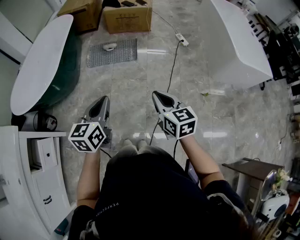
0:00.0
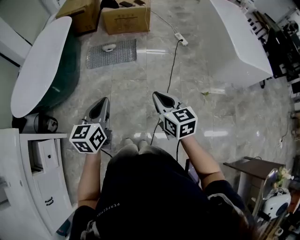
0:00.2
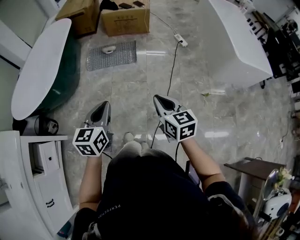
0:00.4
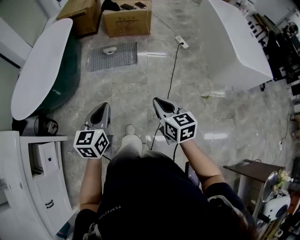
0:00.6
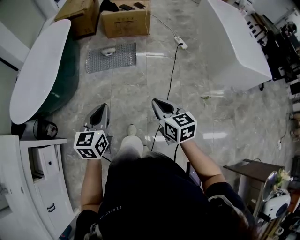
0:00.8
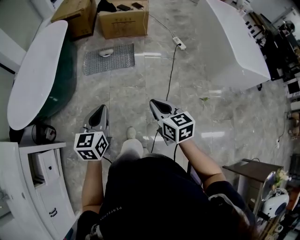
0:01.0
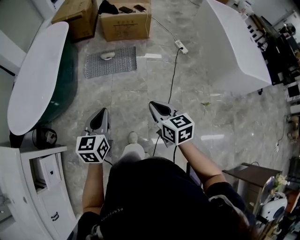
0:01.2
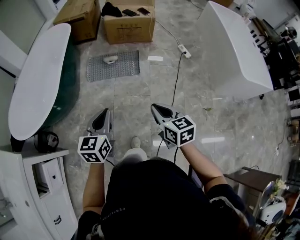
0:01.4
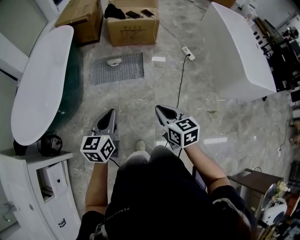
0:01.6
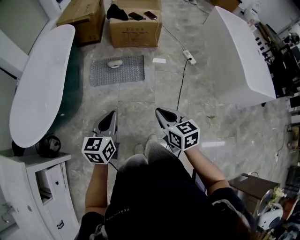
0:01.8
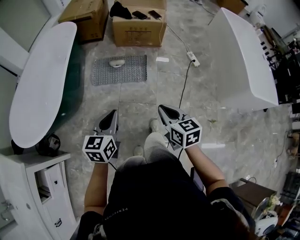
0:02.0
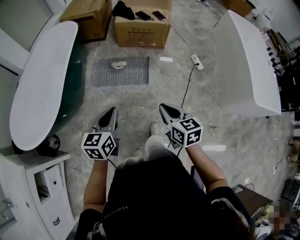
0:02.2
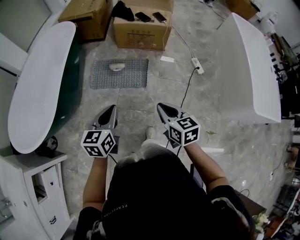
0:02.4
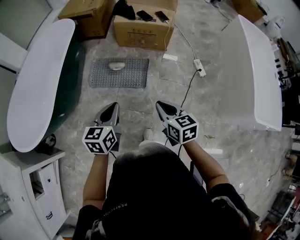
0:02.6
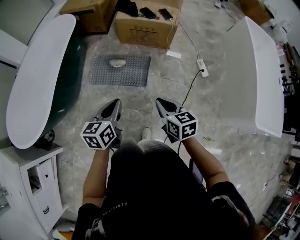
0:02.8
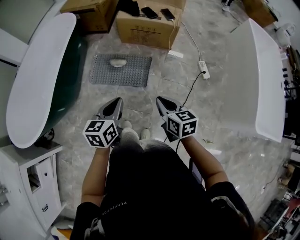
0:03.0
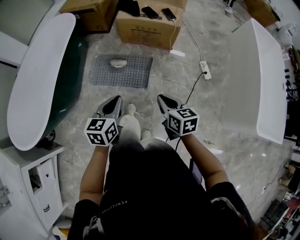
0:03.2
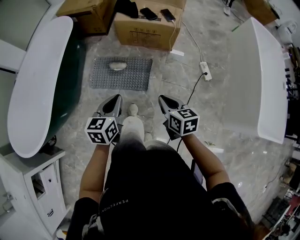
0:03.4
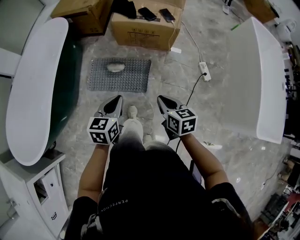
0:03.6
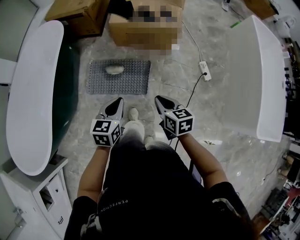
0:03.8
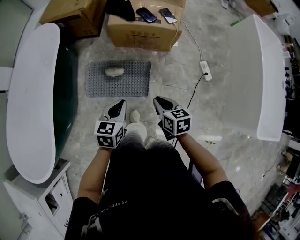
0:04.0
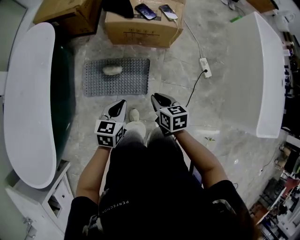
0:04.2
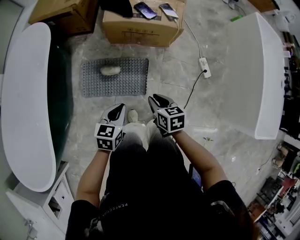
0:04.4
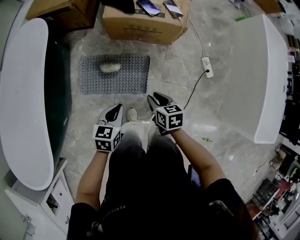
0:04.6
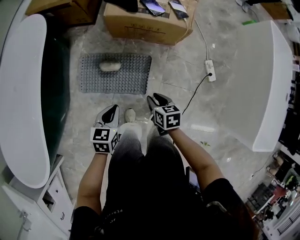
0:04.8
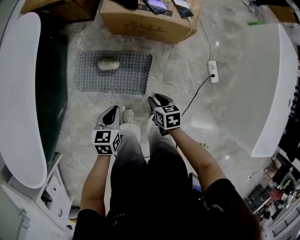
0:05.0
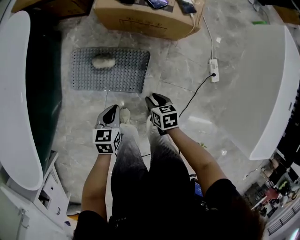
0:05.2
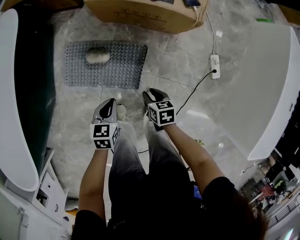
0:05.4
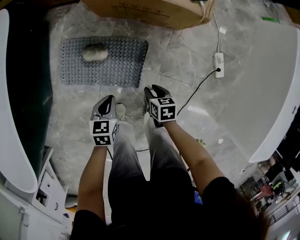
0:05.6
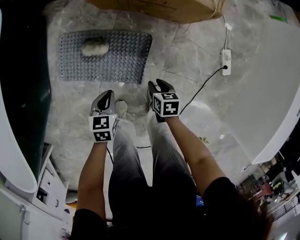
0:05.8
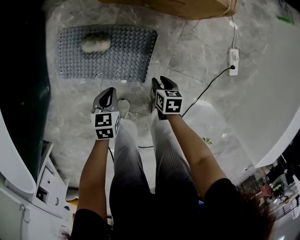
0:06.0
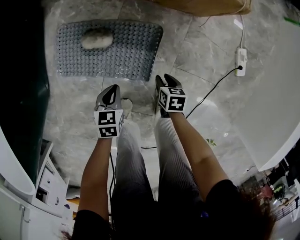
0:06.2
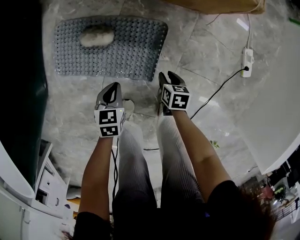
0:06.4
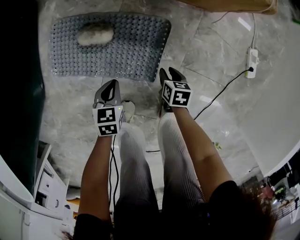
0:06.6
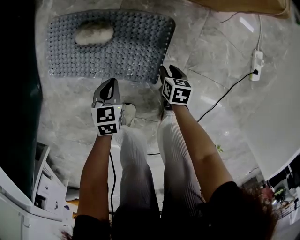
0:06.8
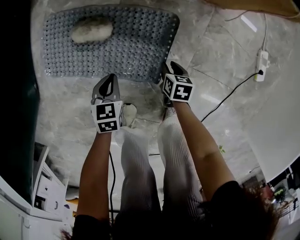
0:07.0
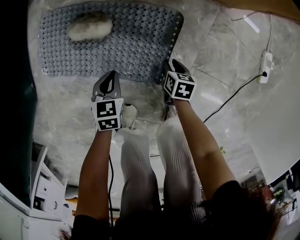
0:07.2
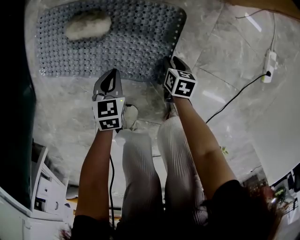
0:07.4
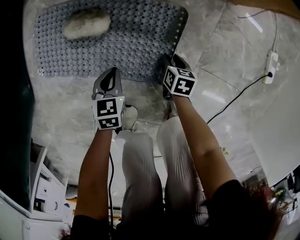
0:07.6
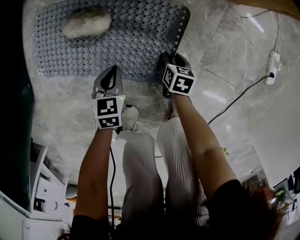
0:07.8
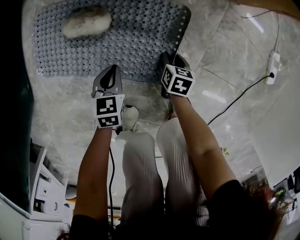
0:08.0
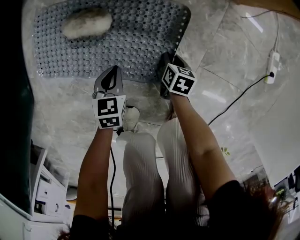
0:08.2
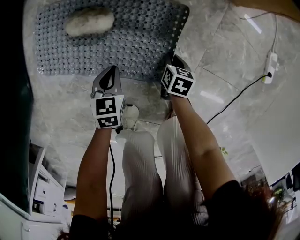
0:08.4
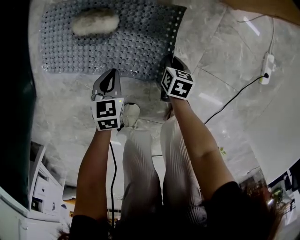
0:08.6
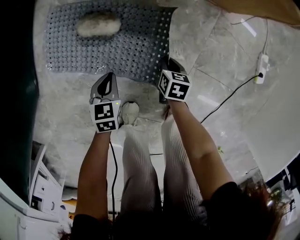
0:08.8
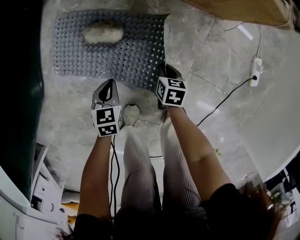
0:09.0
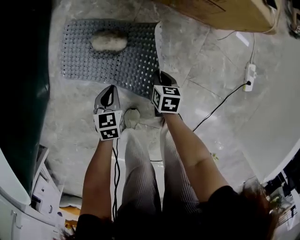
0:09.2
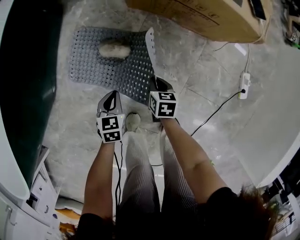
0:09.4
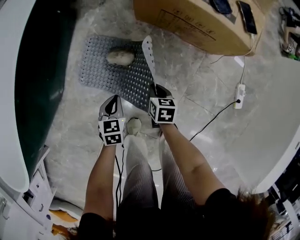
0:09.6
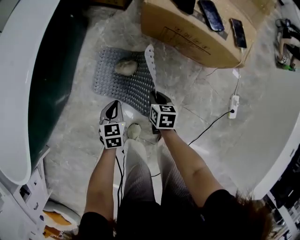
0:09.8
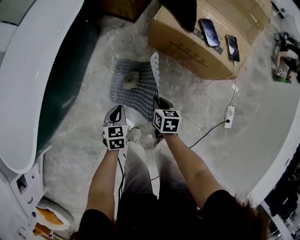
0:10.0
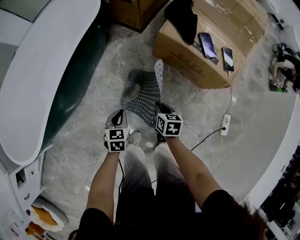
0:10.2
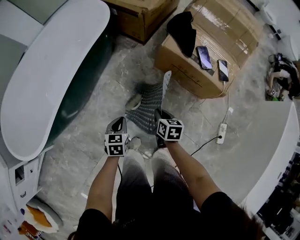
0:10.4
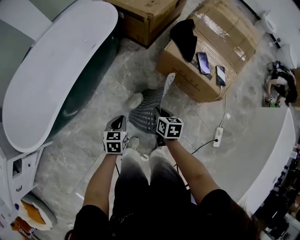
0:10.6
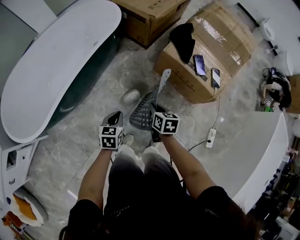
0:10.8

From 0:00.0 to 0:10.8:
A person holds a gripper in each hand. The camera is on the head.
From 0:00.0 to 0:01.6: Both grippers travel together forward, roughly 15 cm.
From 0:01.6 to 0:03.0: Both grippers move forward and to the right, approximately 30 cm.
From 0:03.0 to 0:04.6: The two grippers go about 30 cm forward and downward. The right gripper opens its fingers. Meanwhile the left gripper turns by about 20 degrees.
From 0:04.6 to 0:06.2: The grippers both shift downward by roughly 35 cm. The left gripper turns by about 20 degrees.
From 0:06.2 to 0:07.8: The grippers both shift downward by roughly 20 cm.
From 0:07.8 to 0:09.2: The right gripper shifts roughly 20 cm upward and to the left, and closes its fingers; the left gripper is displaced upward by approximately 15 cm.
From 0:09.2 to 0:10.8: Both grippers move upward, some 40 cm. The left gripper swivels about 20 degrees, while the right gripper rotates approximately 30 degrees.

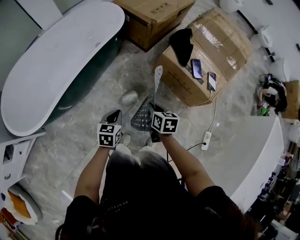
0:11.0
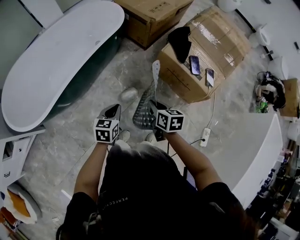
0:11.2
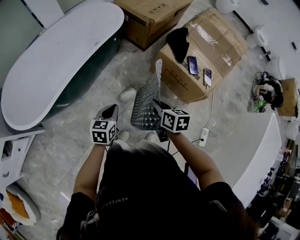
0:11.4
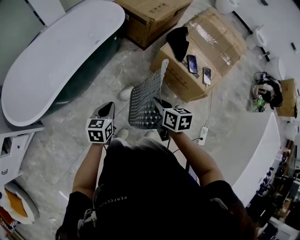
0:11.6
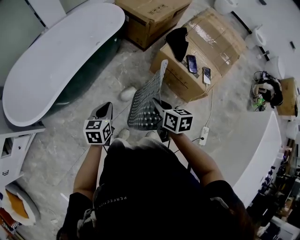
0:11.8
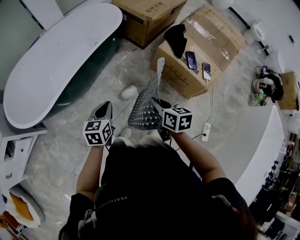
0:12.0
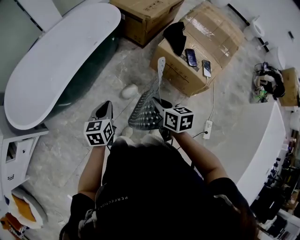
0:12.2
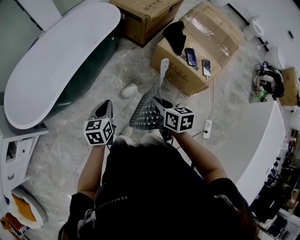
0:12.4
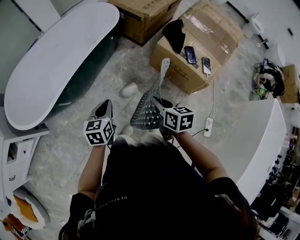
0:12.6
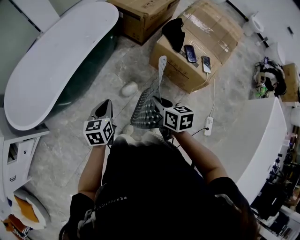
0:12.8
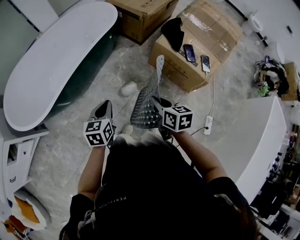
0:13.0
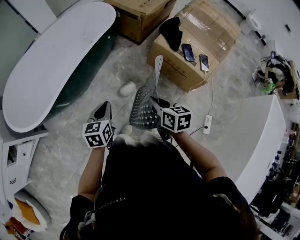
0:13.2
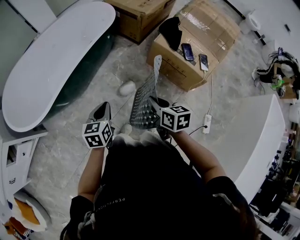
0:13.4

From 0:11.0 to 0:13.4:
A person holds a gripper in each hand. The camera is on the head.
From 0:11.0 to 0:12.2: The left gripper heads upward and to the left, covering some 10 cm. Meanwhile the right gripper is displaced upward and backward by some 15 cm.
From 0:12.2 to 0:13.4: The grippers stay close to where they were, moving slightly.

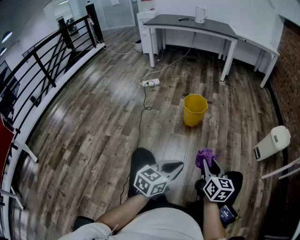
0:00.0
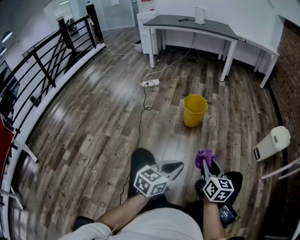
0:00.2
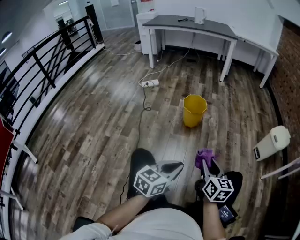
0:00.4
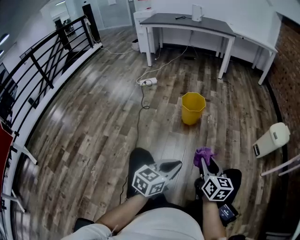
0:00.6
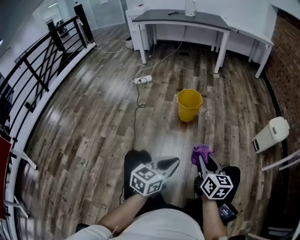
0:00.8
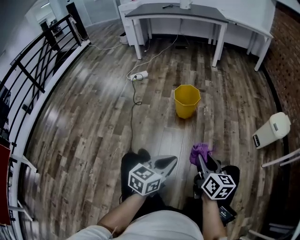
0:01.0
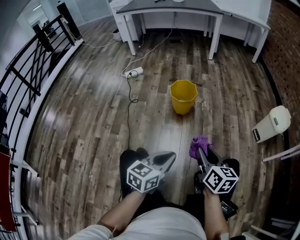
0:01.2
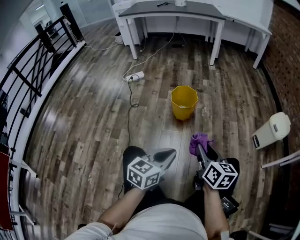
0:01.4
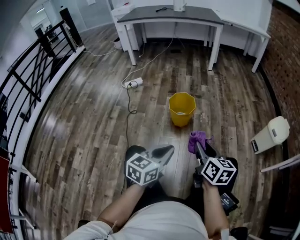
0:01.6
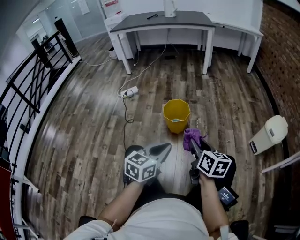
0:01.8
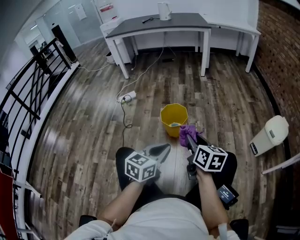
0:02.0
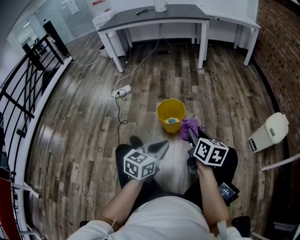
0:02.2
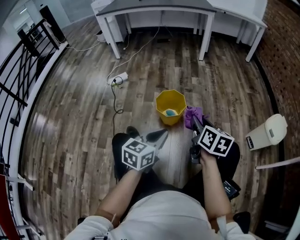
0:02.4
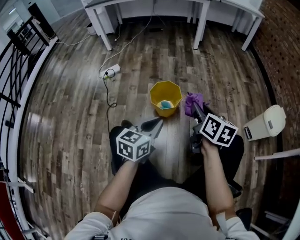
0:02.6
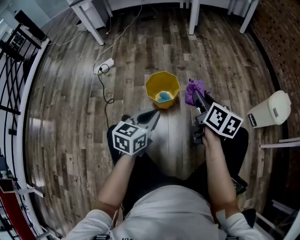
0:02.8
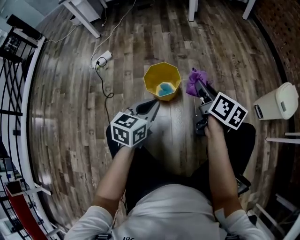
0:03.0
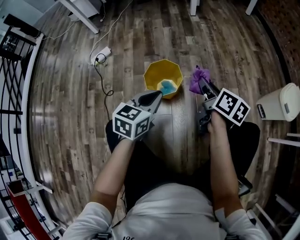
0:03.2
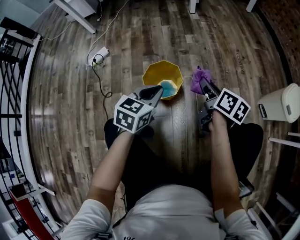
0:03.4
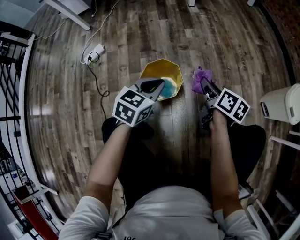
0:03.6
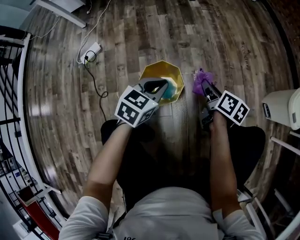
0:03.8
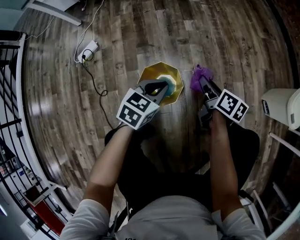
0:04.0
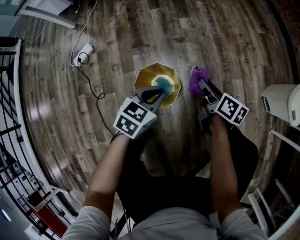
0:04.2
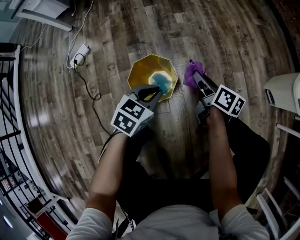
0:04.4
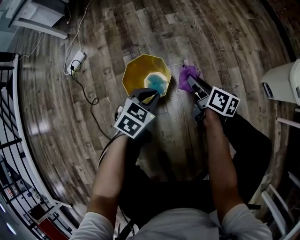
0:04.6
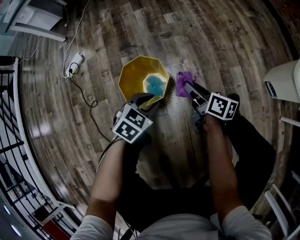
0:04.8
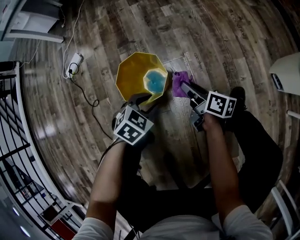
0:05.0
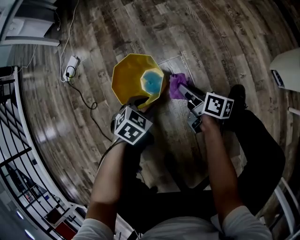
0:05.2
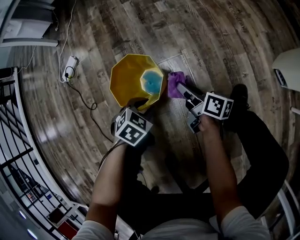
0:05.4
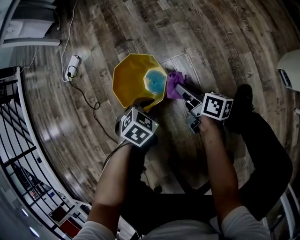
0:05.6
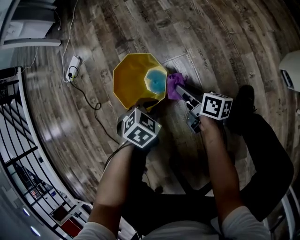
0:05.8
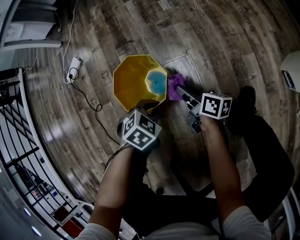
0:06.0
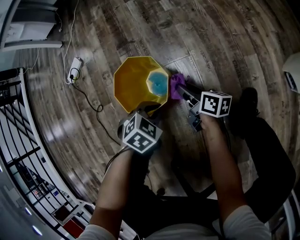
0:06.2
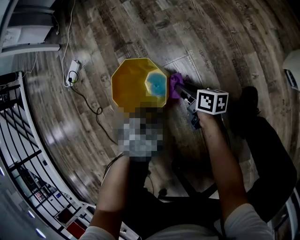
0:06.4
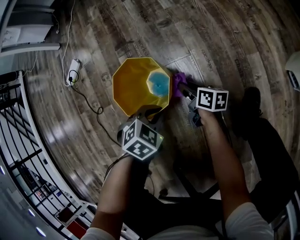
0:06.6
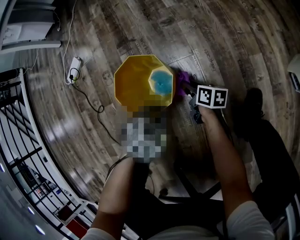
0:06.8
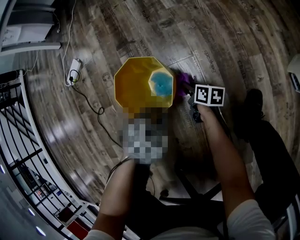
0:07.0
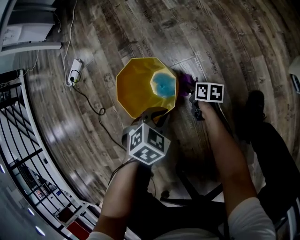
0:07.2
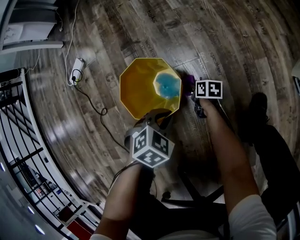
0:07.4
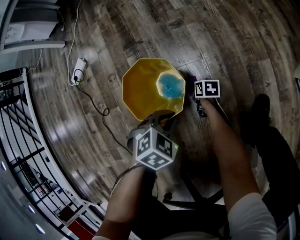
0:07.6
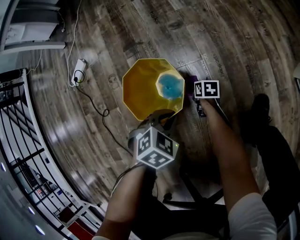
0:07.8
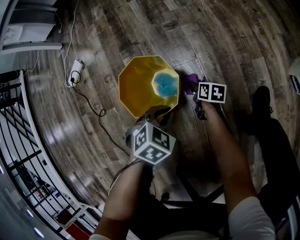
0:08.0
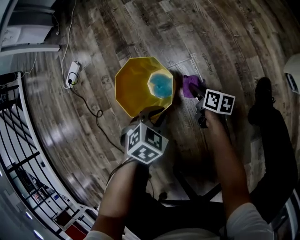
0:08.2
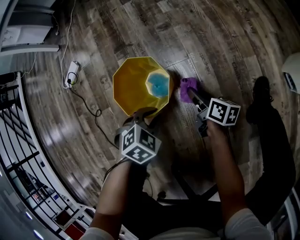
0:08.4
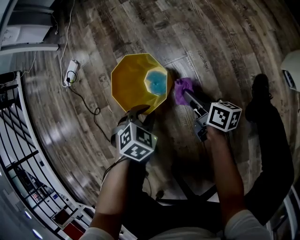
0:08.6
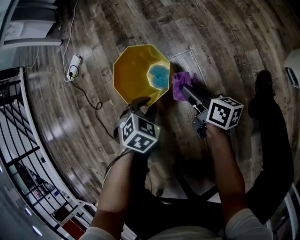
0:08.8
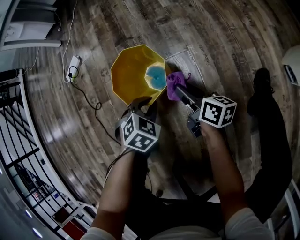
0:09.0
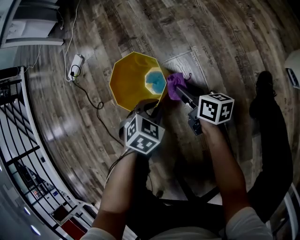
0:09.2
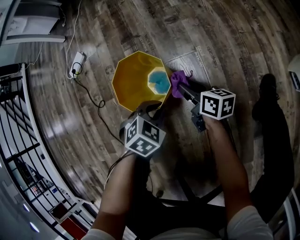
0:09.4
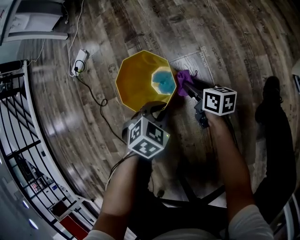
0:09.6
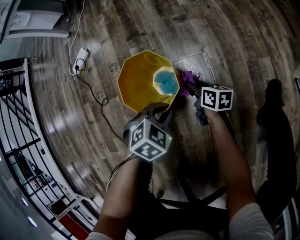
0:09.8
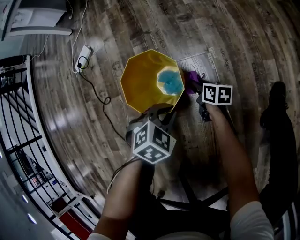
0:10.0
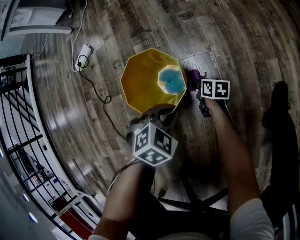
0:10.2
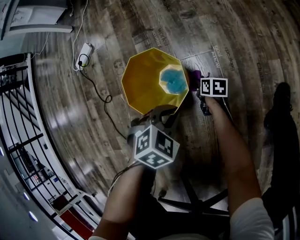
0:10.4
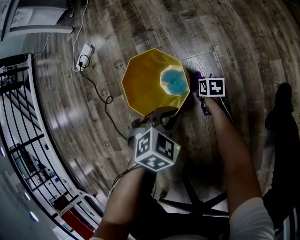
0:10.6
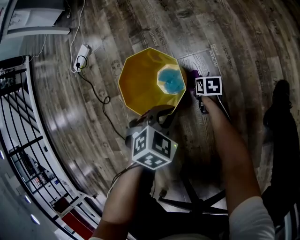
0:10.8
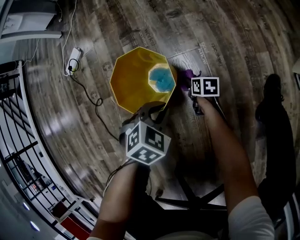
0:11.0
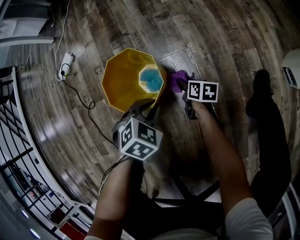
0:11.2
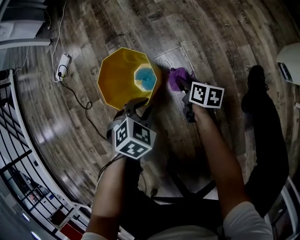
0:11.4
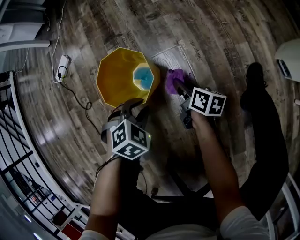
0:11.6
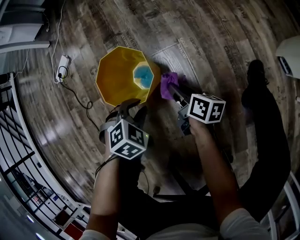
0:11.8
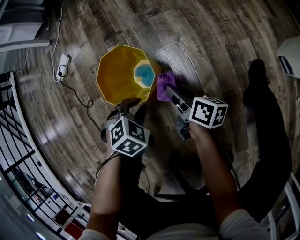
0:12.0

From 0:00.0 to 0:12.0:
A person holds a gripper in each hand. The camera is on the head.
From 0:00.0 to 0:01.6: The two grippers go approximately 15 cm forward.
From 0:01.6 to 0:03.0: The grippers both shift forward by roughly 30 cm. The right gripper swivels about 20 degrees.
From 0:03.0 to 0:04.4: Both grippers travel together downward and forward, some 20 cm. The left gripper changes its angle by about 30 degrees.
From 0:04.4 to 0:06.0: The grippers both shift downward by approximately 15 cm. The left gripper turns by approximately 30 degrees, and opens, then closes once more.
From 0:06.0 to 0:07.6: The right gripper heads downward, covering some 20 cm, and tilts its fingers approximately 40 degrees downward.
From 0:07.6 to 0:09.0: The right gripper travels upward by approximately 25 cm, and points its fingers roughly 40 degrees further upward.
From 0:09.0 to 0:10.4: The right gripper goes roughly 25 cm downward, and points its fingers some 30 degrees further downward.
From 0:10.4 to 0:12.0: The right gripper shifts roughly 20 cm upward, and swivels roughly 30 degrees.
